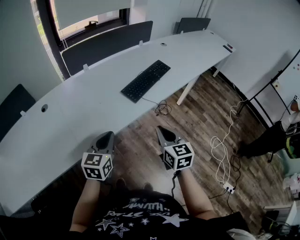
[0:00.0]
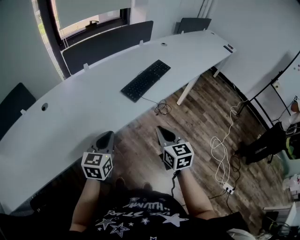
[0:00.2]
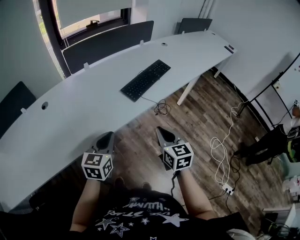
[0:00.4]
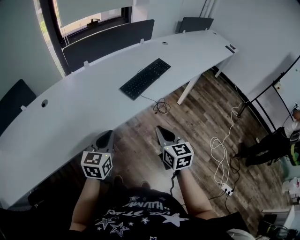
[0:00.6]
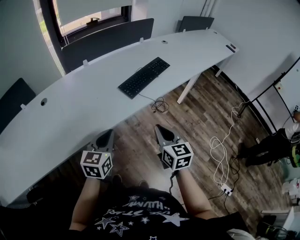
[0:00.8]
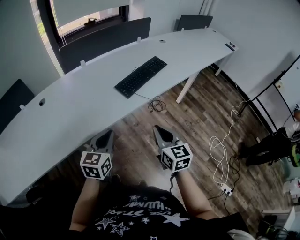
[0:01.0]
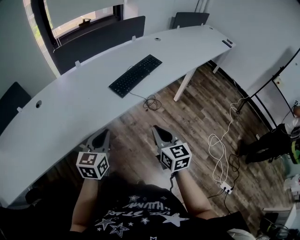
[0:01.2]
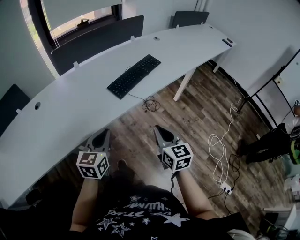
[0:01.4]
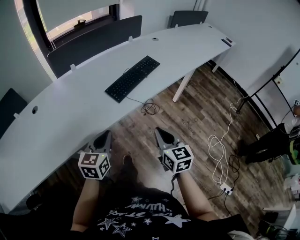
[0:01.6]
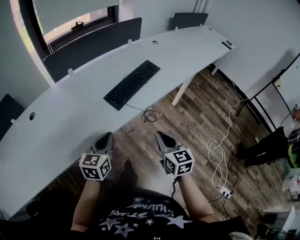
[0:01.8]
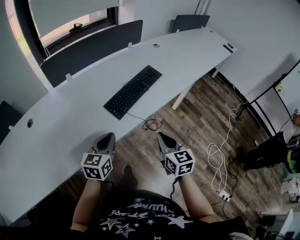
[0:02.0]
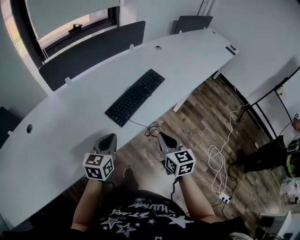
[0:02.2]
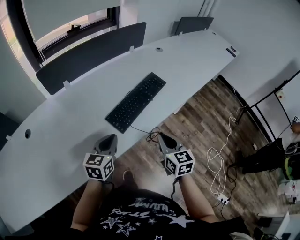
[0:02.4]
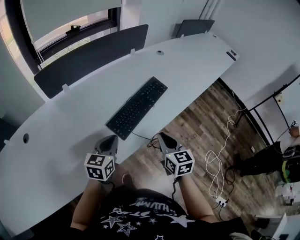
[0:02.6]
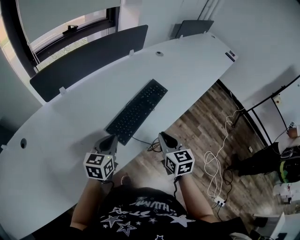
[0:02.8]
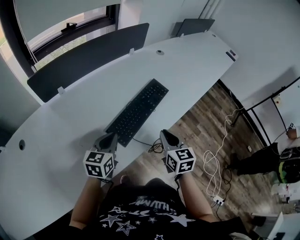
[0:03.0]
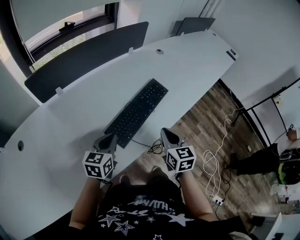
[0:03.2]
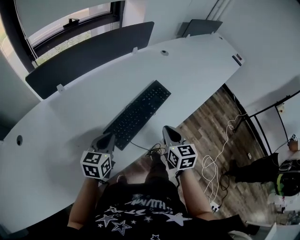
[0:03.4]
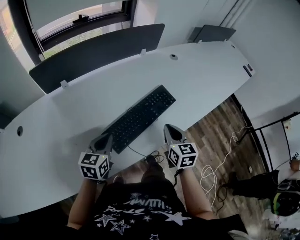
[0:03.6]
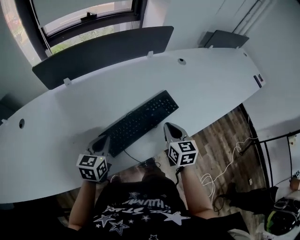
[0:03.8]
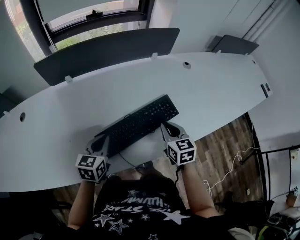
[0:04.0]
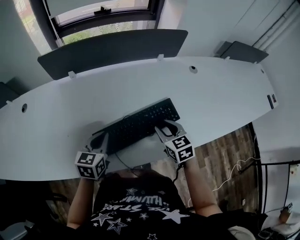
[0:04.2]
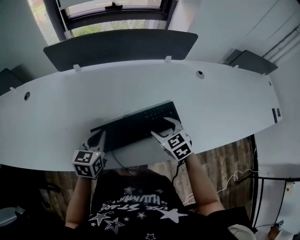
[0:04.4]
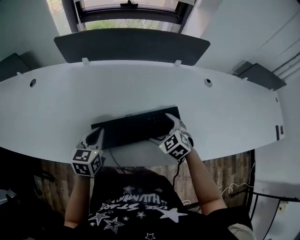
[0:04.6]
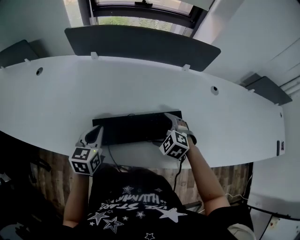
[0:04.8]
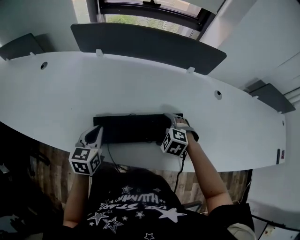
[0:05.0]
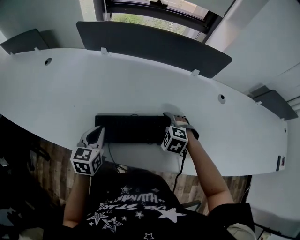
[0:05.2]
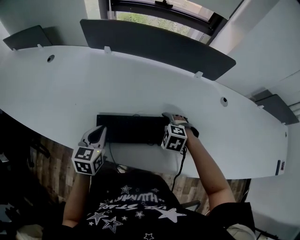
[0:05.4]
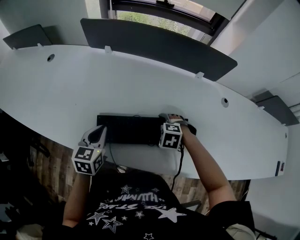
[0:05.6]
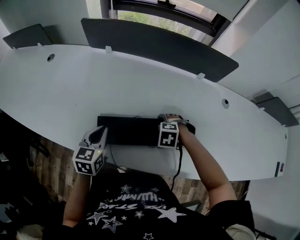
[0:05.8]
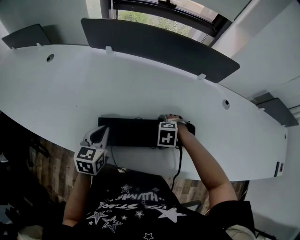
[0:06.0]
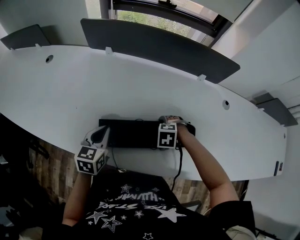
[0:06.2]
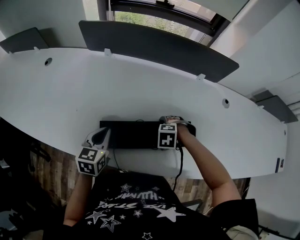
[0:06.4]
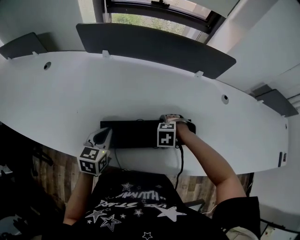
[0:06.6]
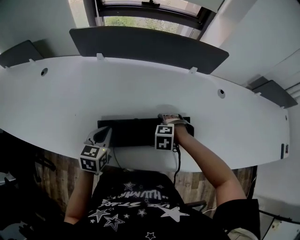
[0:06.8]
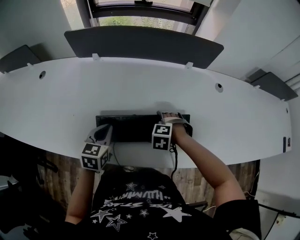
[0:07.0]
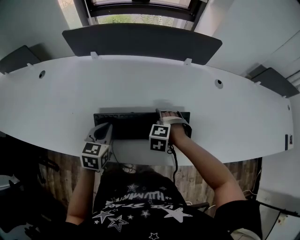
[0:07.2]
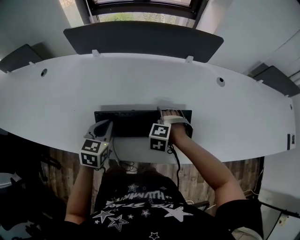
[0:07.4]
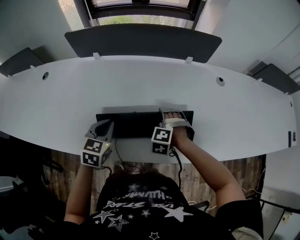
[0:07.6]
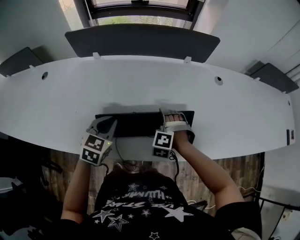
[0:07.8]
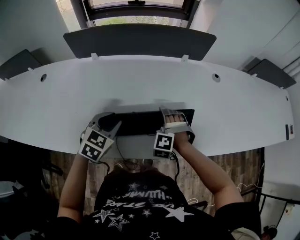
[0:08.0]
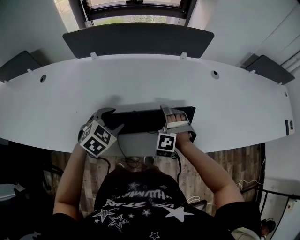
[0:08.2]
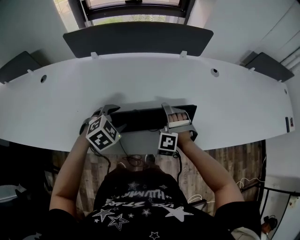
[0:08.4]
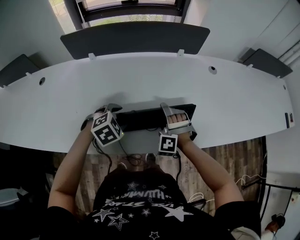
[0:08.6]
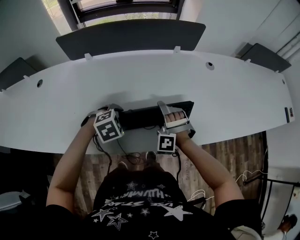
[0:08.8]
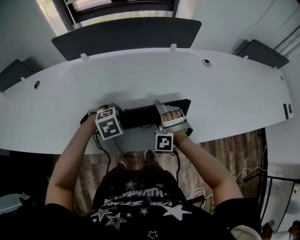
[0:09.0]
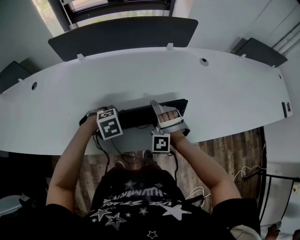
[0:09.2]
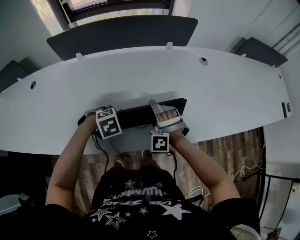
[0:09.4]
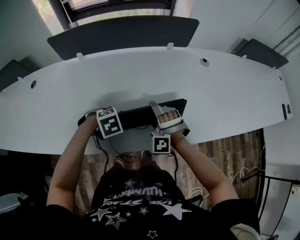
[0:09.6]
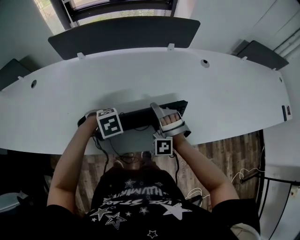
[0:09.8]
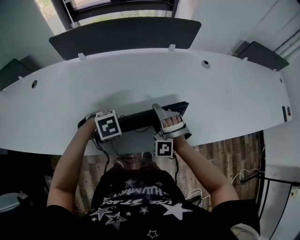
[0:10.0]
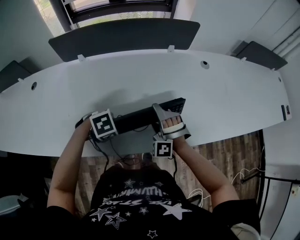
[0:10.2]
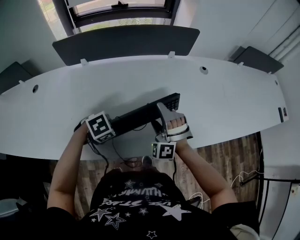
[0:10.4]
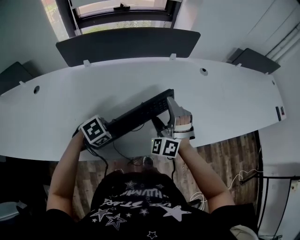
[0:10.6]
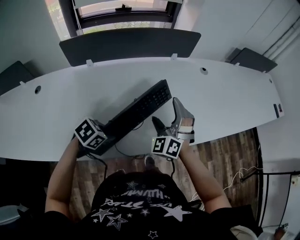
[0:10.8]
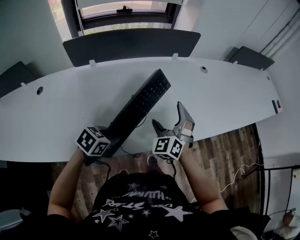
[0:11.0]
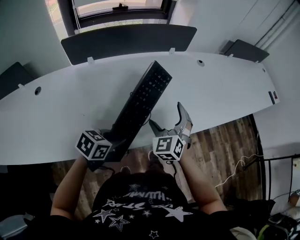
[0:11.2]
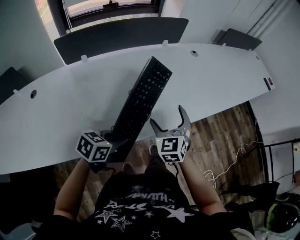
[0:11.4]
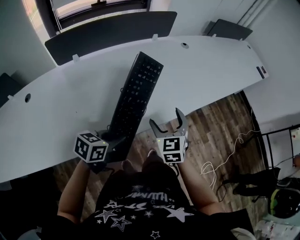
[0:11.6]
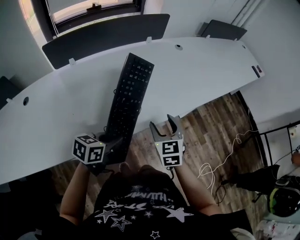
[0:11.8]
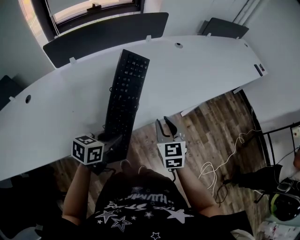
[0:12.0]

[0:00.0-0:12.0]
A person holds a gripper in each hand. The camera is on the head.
0:00.0 to 0:01.6: Both grippers travel together to the right, roughly 10 cm.
0:01.6 to 0:03.0: The grippers both shift forward by some 25 cm.
0:03.0 to 0:04.4: The left gripper ends up about 5 cm from where it was, and rotates some 40 degrees. The right gripper shifts by about 20 cm, changes its angle by approximately 60 degrees, and opens up.
0:04.4 to 0:06.0: The right gripper is displaced downward by some 10 cm, angles its fingers downward, by some 40 degrees, and opens.
0:06.0 to 0:07.6: The right gripper rotates roughly 30 degrees.
0:07.6 to 0:09.0: The right gripper swivels approximately 30 degrees, while the left gripper is displaced to the right and downward by some 10 cm, tilts its fingers approximately 40 degrees downward, and opens.
0:09.0 to 0:10.4: The left gripper closes up. The right gripper moves upward, some 5 cm.
0:10.4 to 0:12.0: The left gripper heads backward, upward and to the right, covering approximately 15 cm, and tilts its fingers about 40 degrees upward. The right gripper goes about 20 cm backward and to the right, rolls clockwise, seen from behind, by approximately 80 degrees, and closes its fingers.

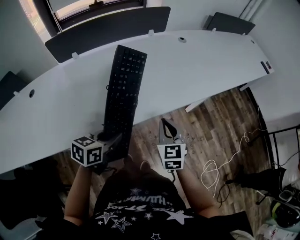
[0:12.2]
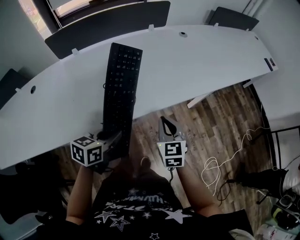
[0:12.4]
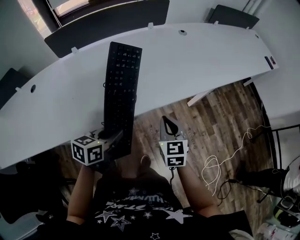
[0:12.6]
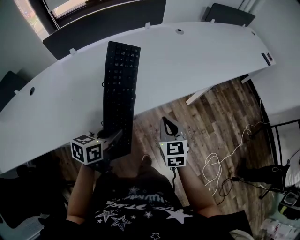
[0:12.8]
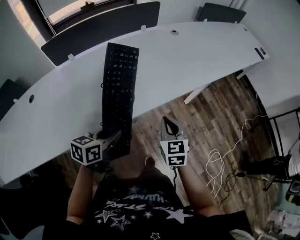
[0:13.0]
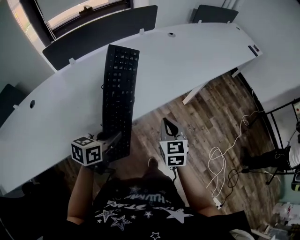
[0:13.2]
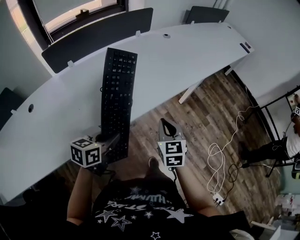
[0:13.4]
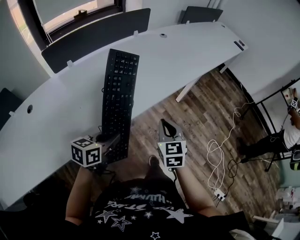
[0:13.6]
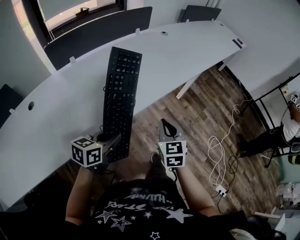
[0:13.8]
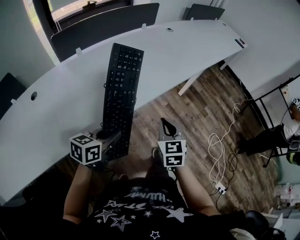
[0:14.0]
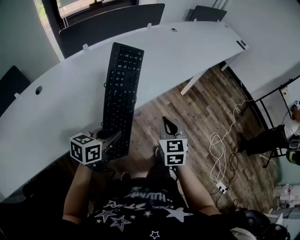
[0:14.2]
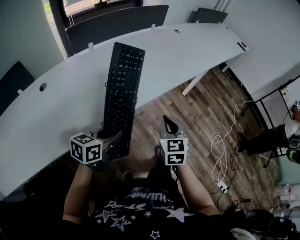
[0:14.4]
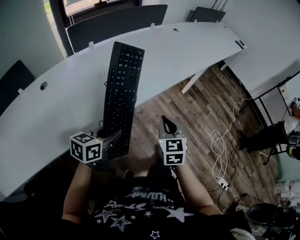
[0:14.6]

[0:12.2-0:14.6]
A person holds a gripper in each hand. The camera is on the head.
0:12.2 to 0:13.4: The left gripper shifts about 10 cm backward and to the left. The right gripper goes some 10 cm backward.
0:13.4 to 0:14.6: The grippers both shift backward and to the left by some 20 cm.

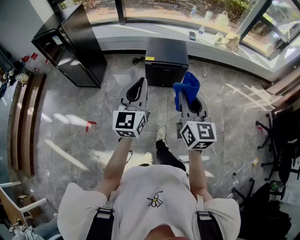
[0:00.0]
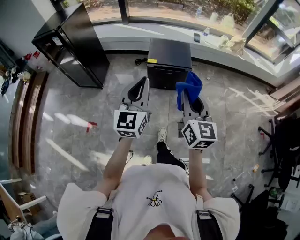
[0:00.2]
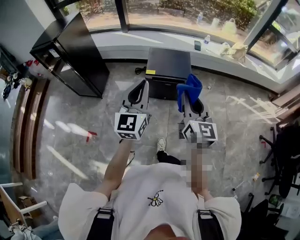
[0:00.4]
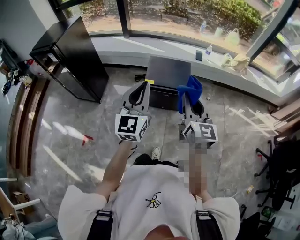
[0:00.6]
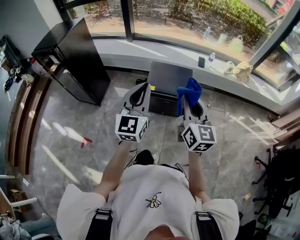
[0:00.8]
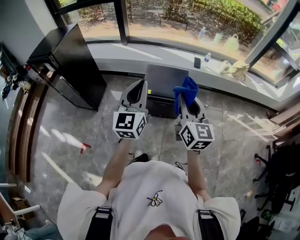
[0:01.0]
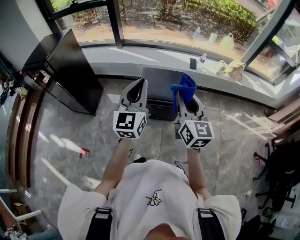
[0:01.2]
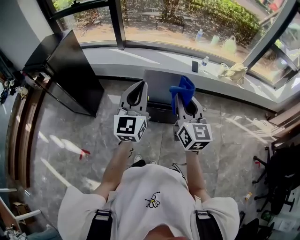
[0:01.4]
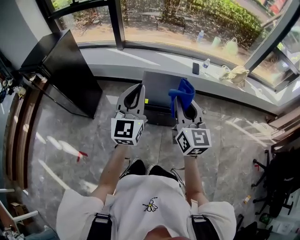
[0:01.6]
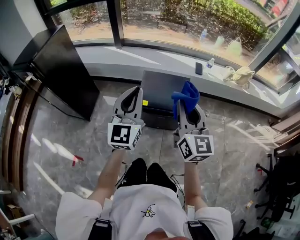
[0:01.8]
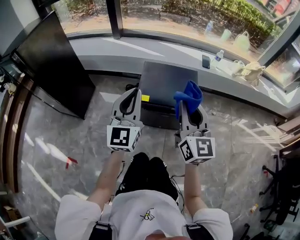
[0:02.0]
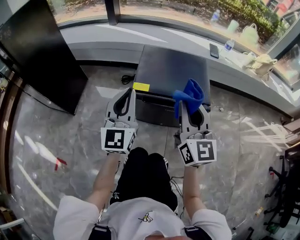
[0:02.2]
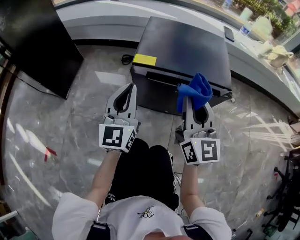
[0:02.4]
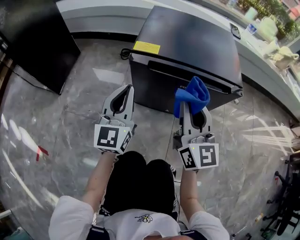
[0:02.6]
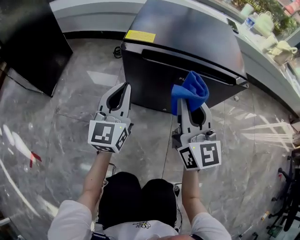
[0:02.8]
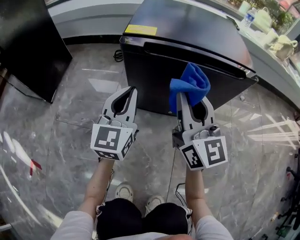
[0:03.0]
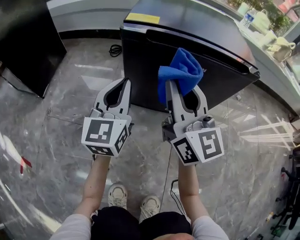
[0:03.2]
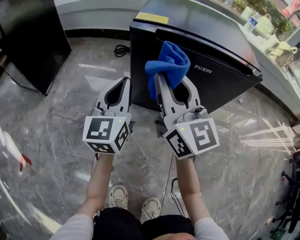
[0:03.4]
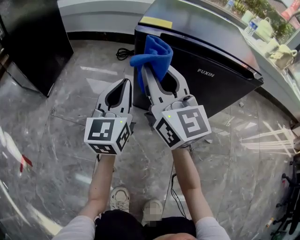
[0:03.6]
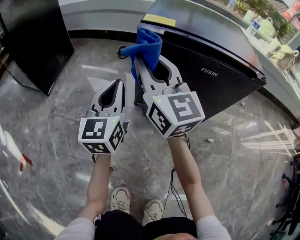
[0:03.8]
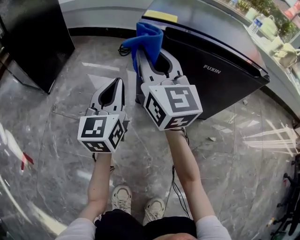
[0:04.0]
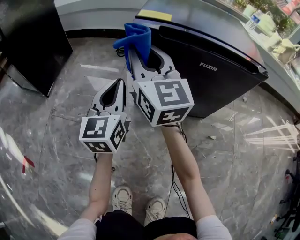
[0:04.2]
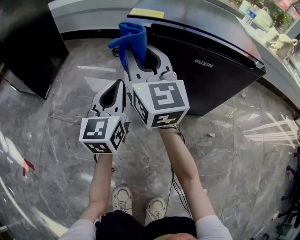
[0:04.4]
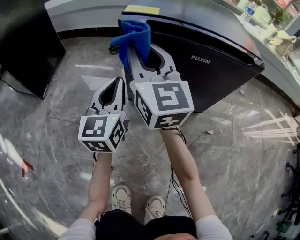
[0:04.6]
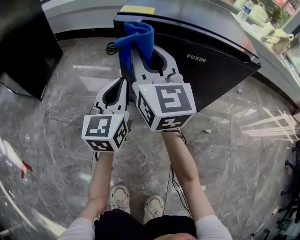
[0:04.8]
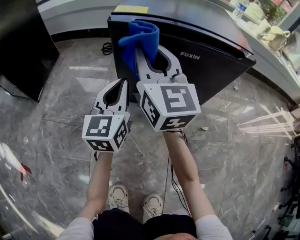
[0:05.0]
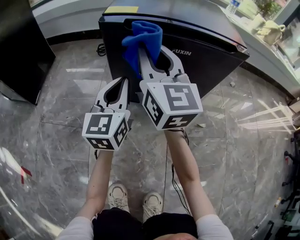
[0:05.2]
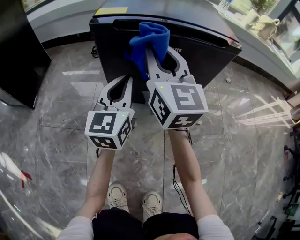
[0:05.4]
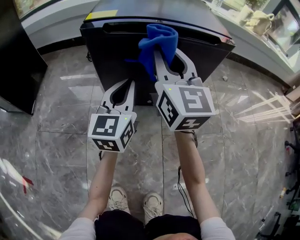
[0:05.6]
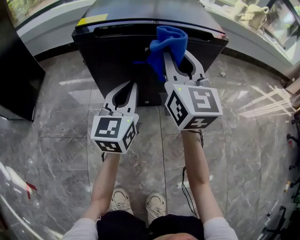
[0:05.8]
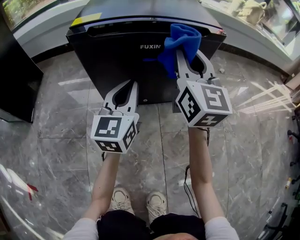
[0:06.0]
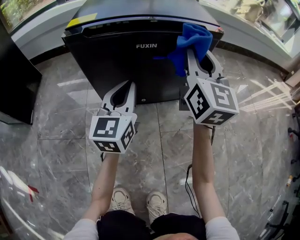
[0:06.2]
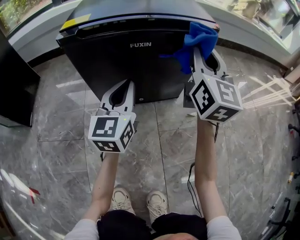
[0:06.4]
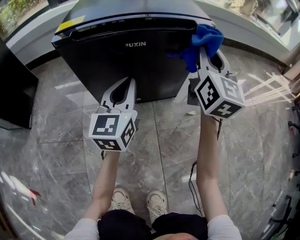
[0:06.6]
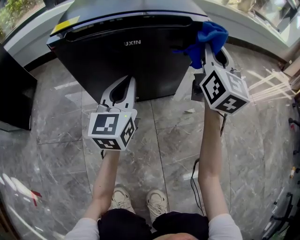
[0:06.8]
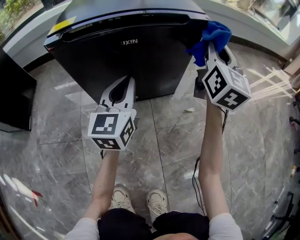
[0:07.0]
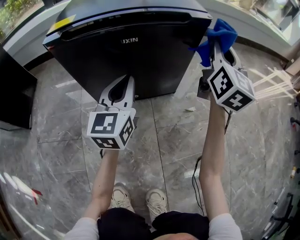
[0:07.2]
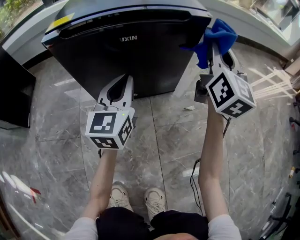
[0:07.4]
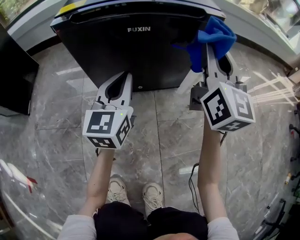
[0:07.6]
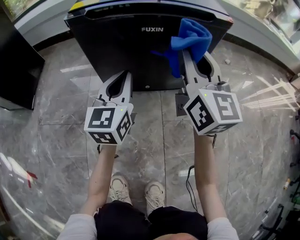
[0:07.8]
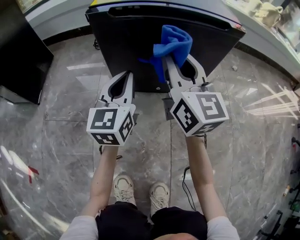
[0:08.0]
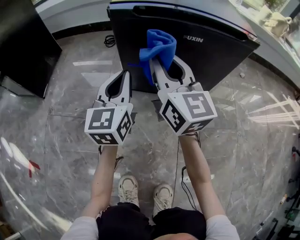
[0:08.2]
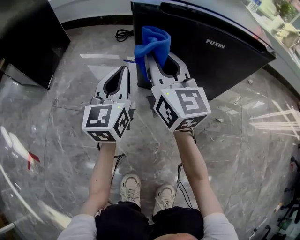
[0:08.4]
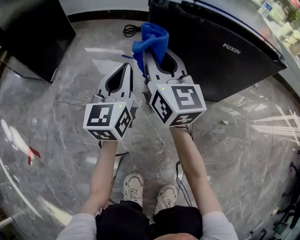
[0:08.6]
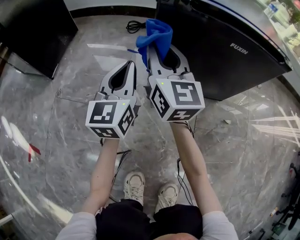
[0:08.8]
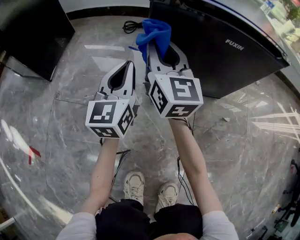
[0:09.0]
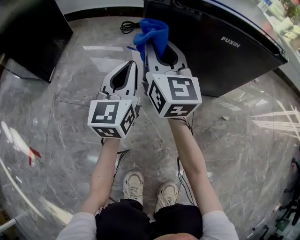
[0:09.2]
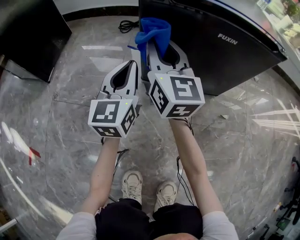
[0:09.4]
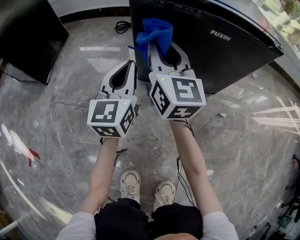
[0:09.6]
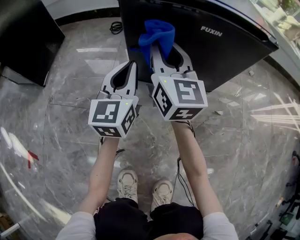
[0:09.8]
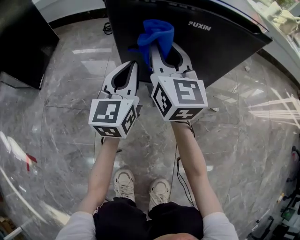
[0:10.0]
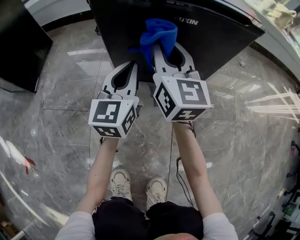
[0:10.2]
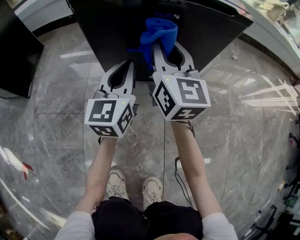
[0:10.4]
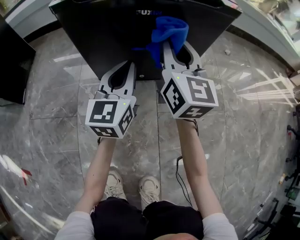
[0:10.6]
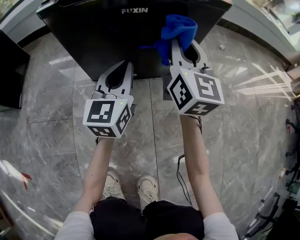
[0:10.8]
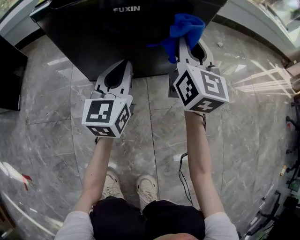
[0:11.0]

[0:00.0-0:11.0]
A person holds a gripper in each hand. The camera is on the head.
0:00.0 to 0:01.6: Both grippers move forward, some 35 cm.
0:01.6 to 0:03.2: The grippers both shift downward by approximately 70 cm.
0:03.2 to 0:04.8: The right gripper shifts approximately 10 cm forward and to the left.
0:04.8 to 0:06.2: The right gripper travels to the right by roughly 25 cm, and turns by about 30 degrees, while the left gripper moves to the right, about 15 cm.
0:06.2 to 0:07.8: The right gripper moves some 15 cm to the right and comes back.
0:07.8 to 0:09.4: The right gripper heads to the left, covering approximately 25 cm. The left gripper shifts roughly 15 cm to the left.
0:09.4 to 0:11.0: The grippers both shift to the right by some 25 cm. The right gripper turns by about 20 degrees.
